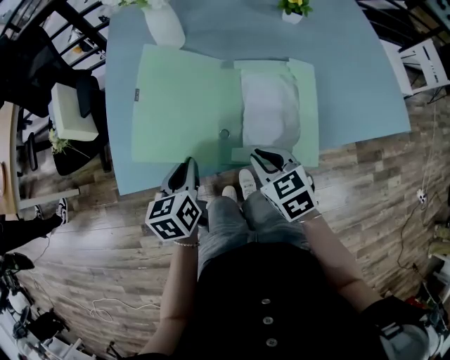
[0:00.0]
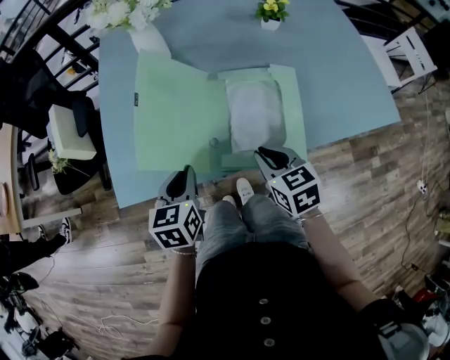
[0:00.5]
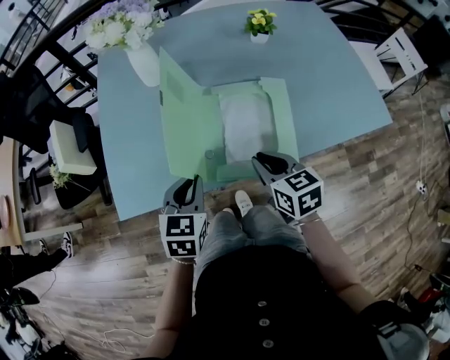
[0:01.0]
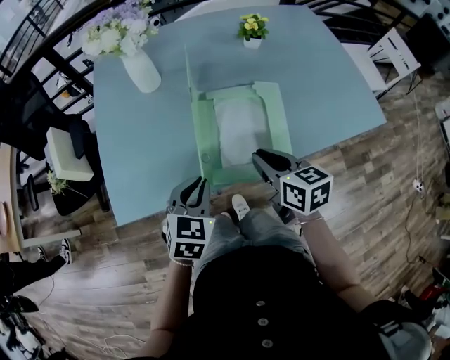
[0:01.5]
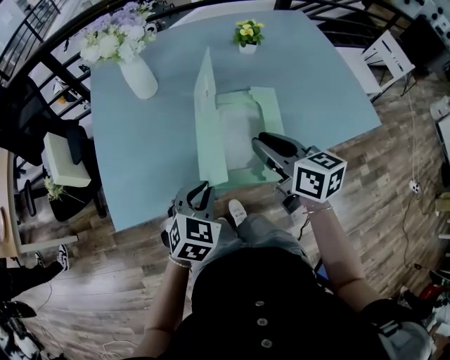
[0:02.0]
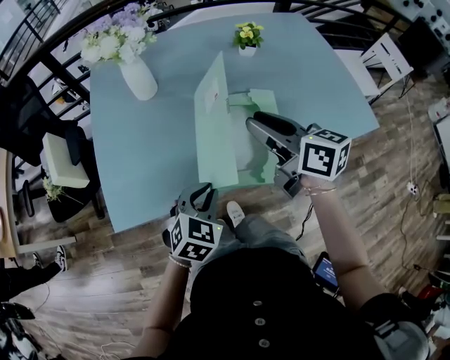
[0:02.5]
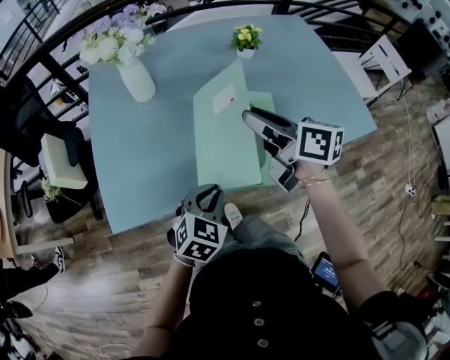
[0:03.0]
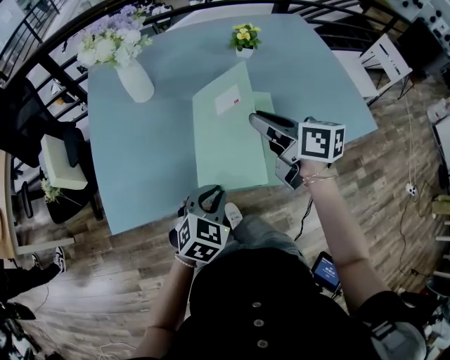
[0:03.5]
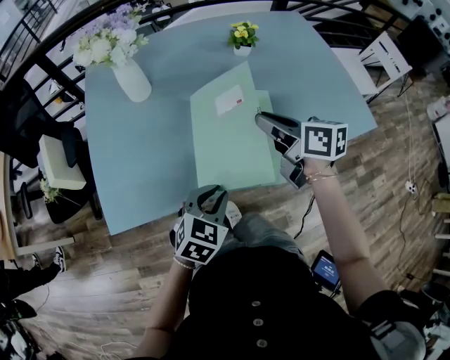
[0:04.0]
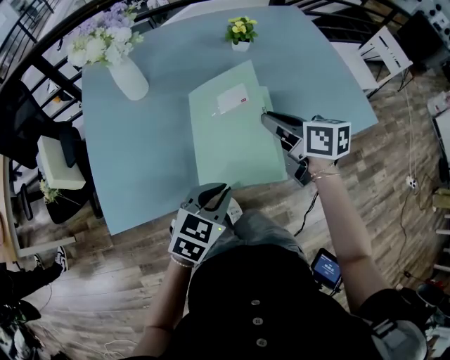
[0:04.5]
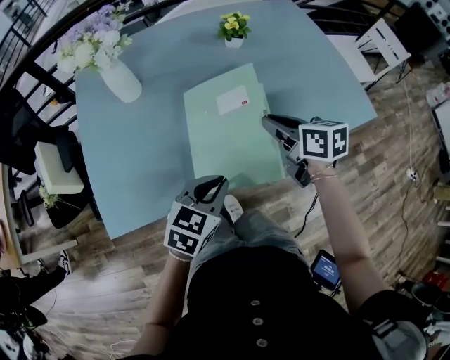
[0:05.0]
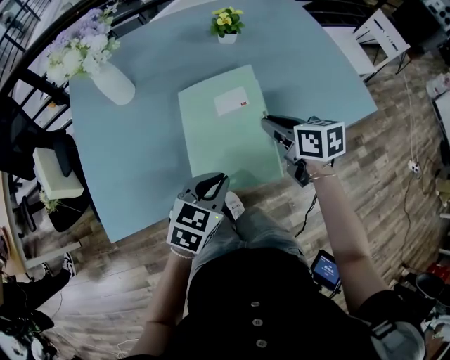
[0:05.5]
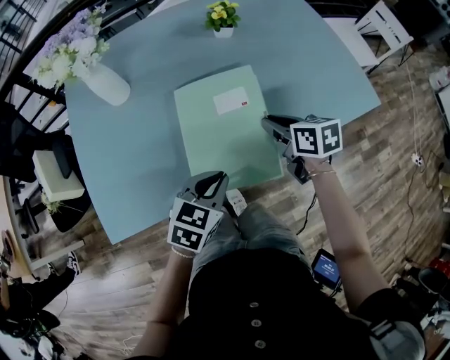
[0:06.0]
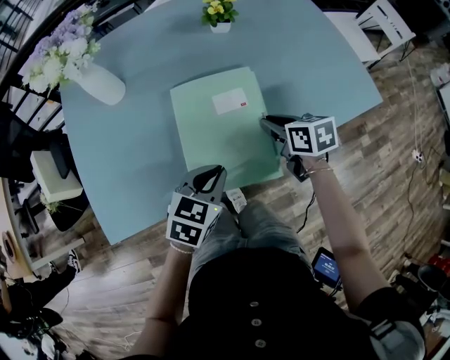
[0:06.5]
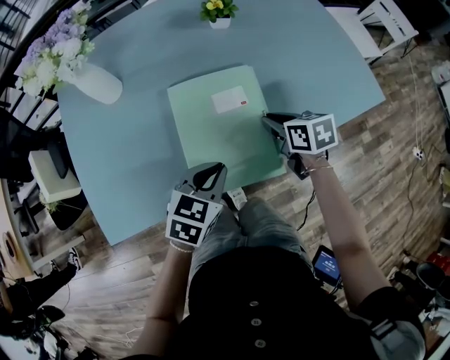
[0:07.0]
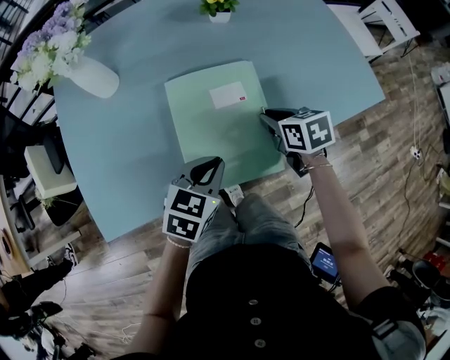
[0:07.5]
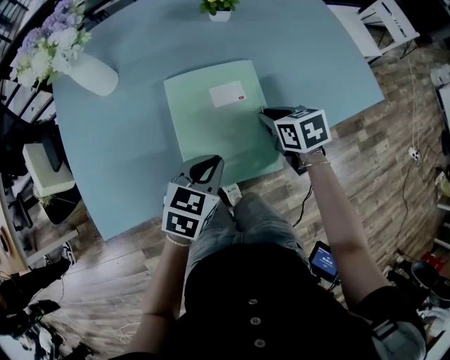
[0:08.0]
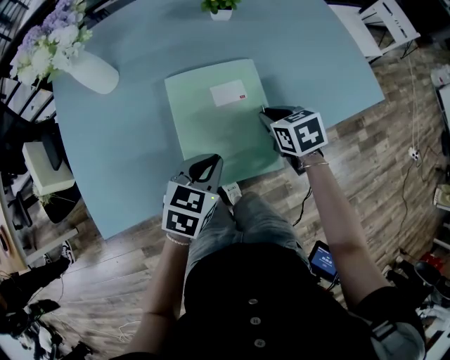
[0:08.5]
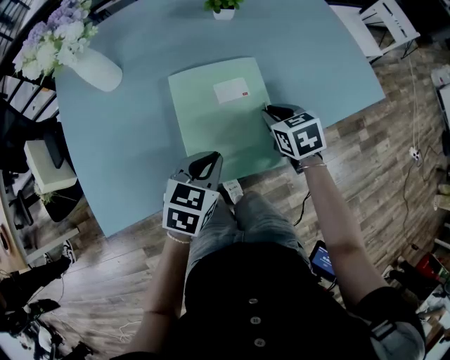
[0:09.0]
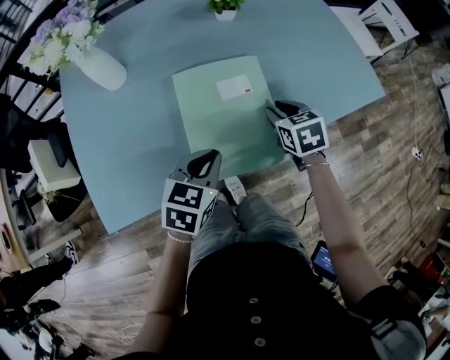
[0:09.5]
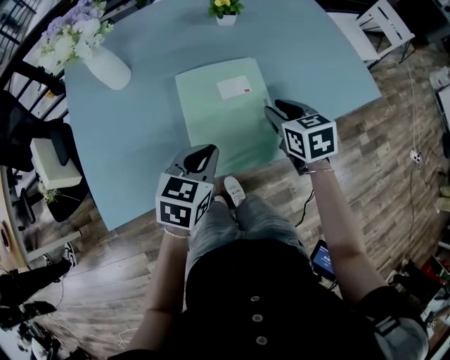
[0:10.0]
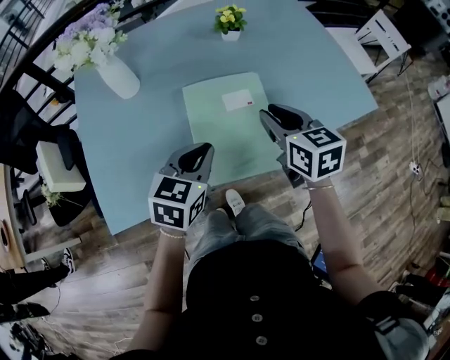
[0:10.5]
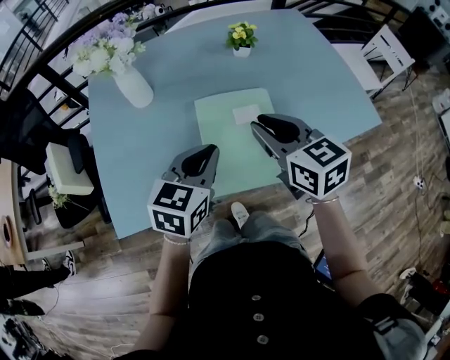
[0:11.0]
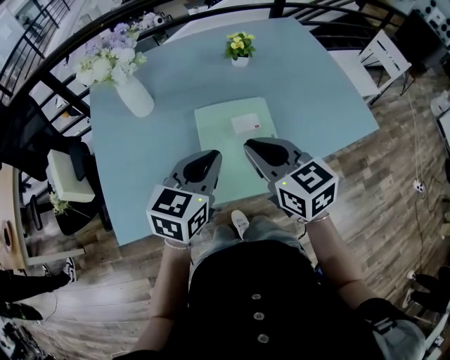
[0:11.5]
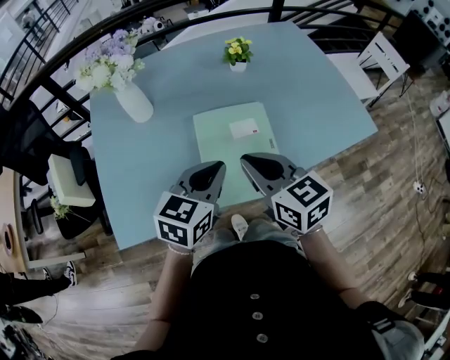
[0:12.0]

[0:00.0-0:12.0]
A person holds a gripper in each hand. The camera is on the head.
0:00.0 to 0:02.0: The right gripper moves upward and to the right, some 15 cm, and changes its angle by roughly 40 degrees, while the left gripper moves to the right, about 10 cm, and rotates around the line of its fingers by some 50 degrees, clockwise from behind.
0:02.0 to 0:04.0: The left gripper travels to the right by roughly 5 cm. Meanwhile the right gripper heads forward, covering roughly 5 cm.
0:04.0 to 0:06.0: The left gripper changes place by some 5 cm. Meanwhile the right gripper shifts approximately 15 cm downward and to the right.
0:06.0 to 0:08.0: The right gripper travels downward by approximately 5 cm.
0:08.0 to 0:10.0: The right gripper is displaced upward by roughly 5 cm.
0:10.0 to 0:12.0: The right gripper travels upward, to the left and backward by about 20 cm, swivels some 30 degrees, and closes, while the left gripper goes about 10 cm upward.

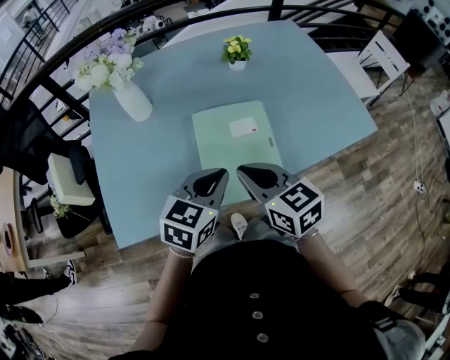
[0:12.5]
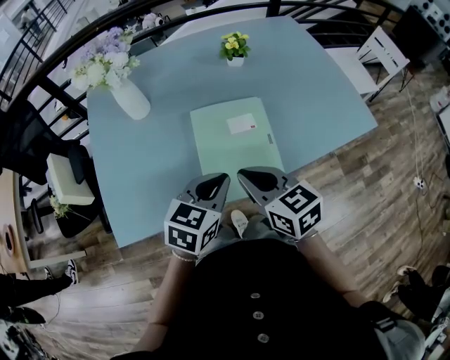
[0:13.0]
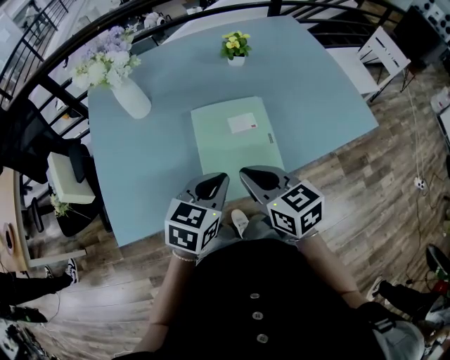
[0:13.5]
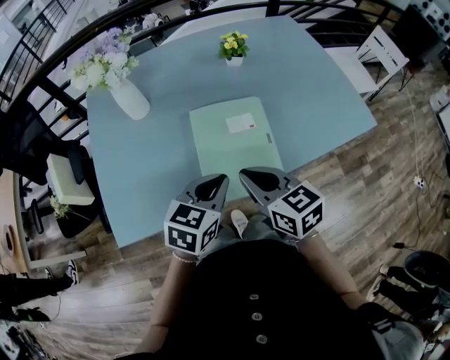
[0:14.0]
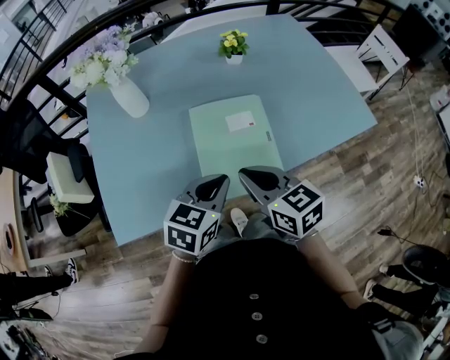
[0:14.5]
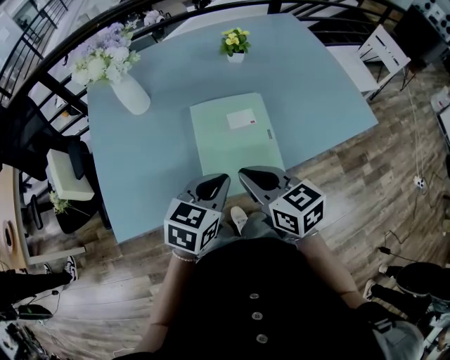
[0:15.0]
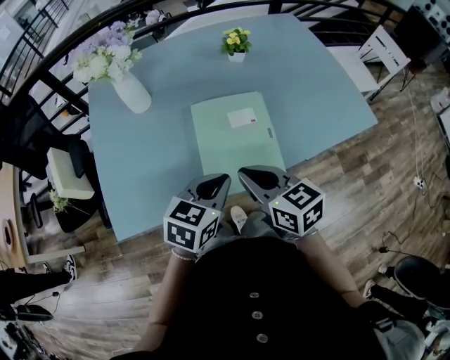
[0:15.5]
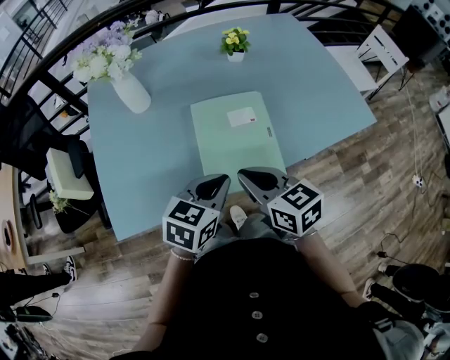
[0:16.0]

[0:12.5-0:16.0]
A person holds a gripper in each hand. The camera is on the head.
0:12.5 to 0:16.0: The grippers make only small movements.

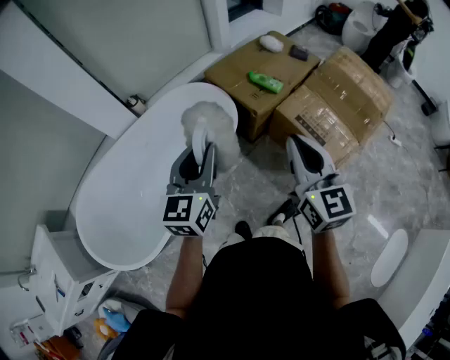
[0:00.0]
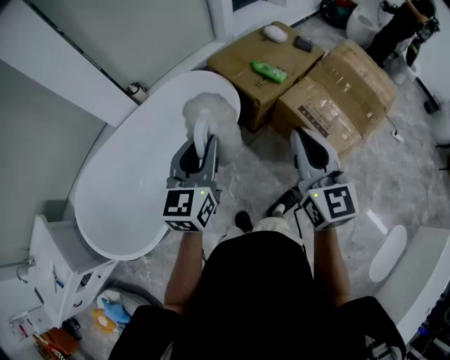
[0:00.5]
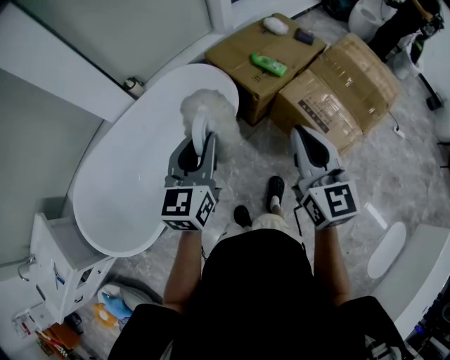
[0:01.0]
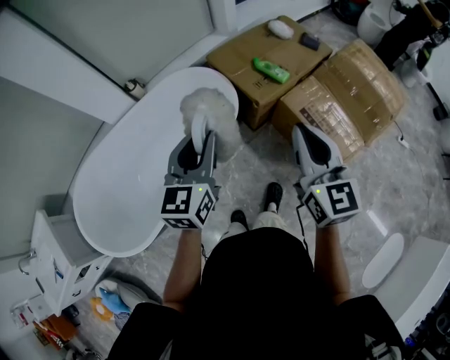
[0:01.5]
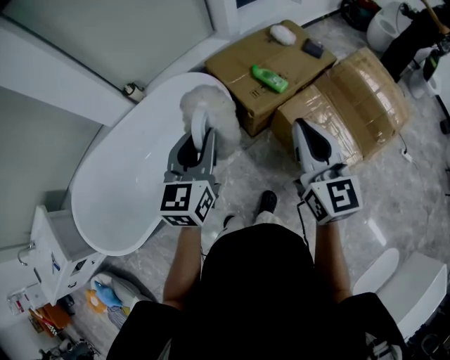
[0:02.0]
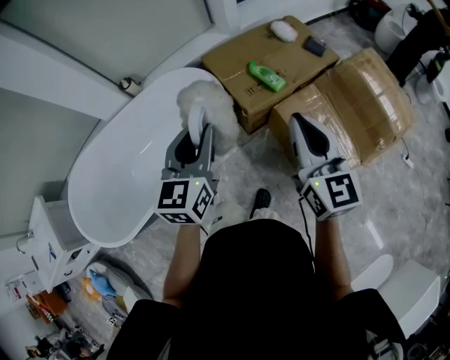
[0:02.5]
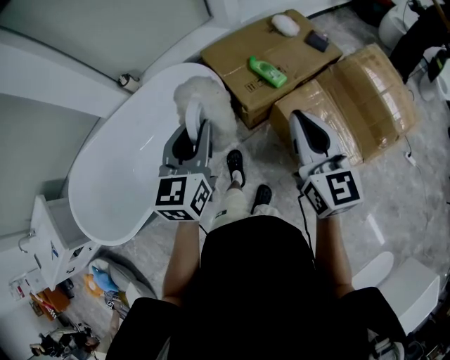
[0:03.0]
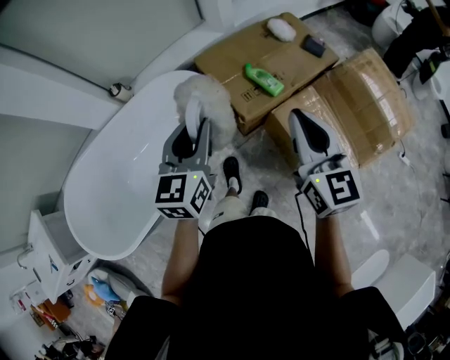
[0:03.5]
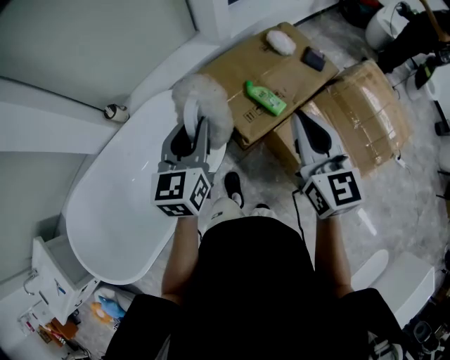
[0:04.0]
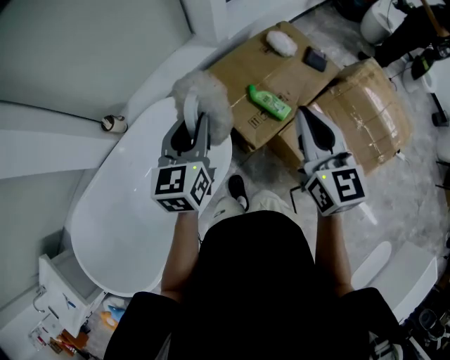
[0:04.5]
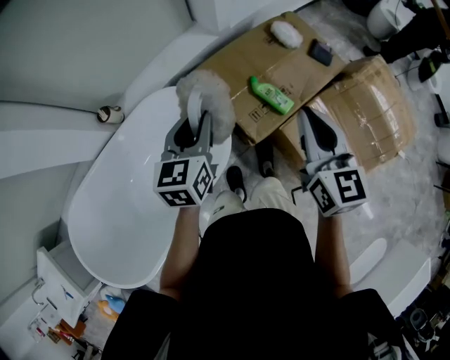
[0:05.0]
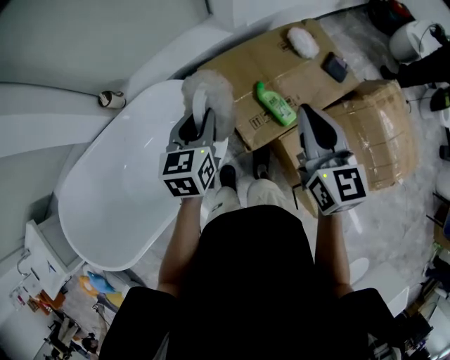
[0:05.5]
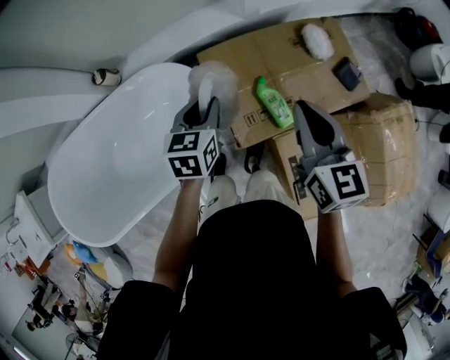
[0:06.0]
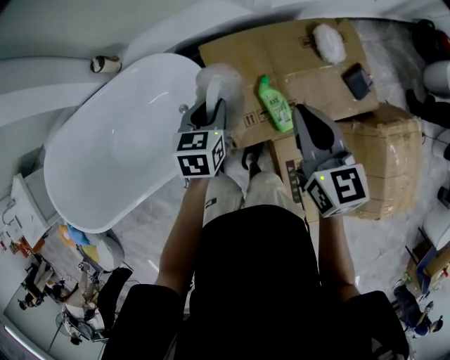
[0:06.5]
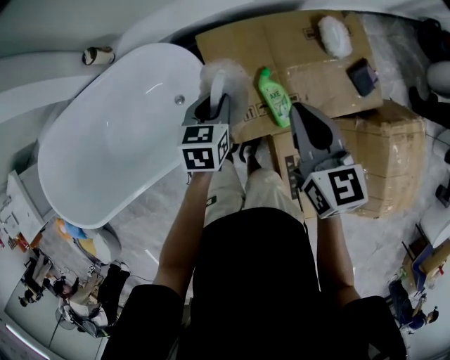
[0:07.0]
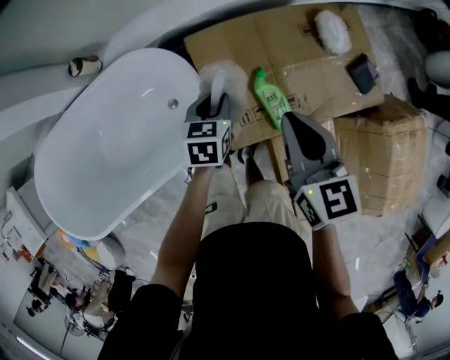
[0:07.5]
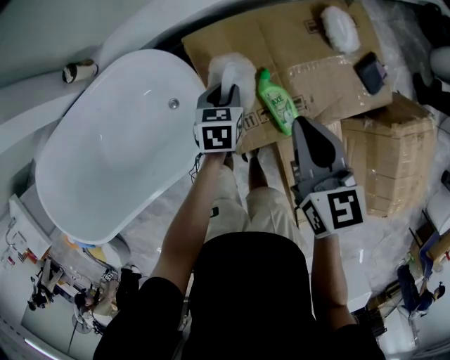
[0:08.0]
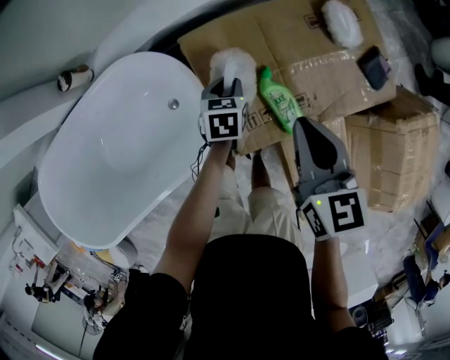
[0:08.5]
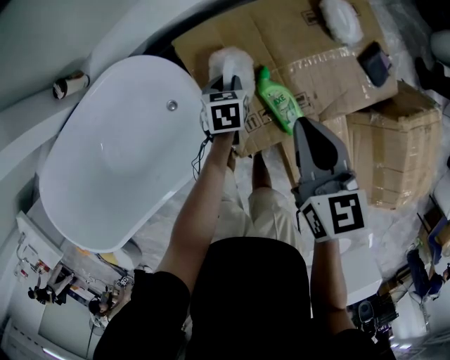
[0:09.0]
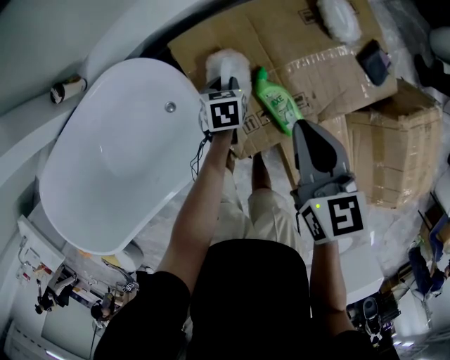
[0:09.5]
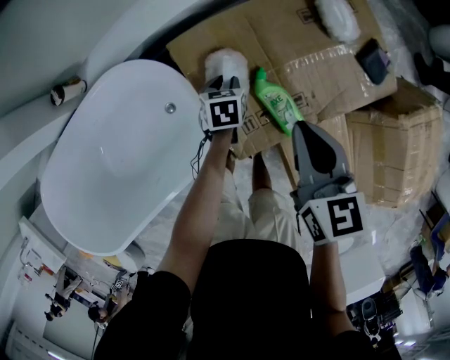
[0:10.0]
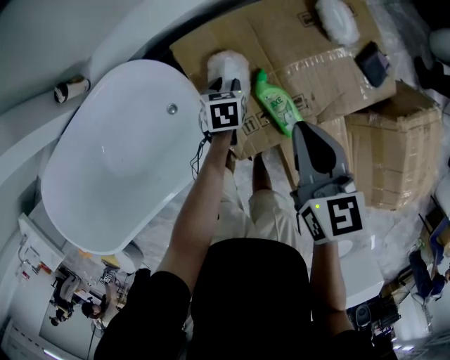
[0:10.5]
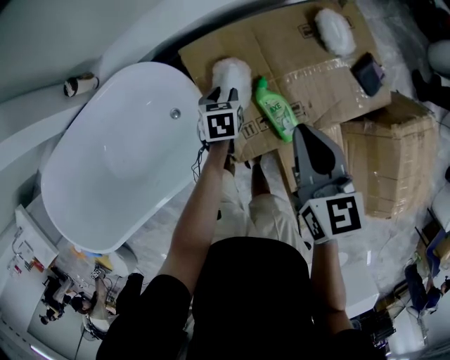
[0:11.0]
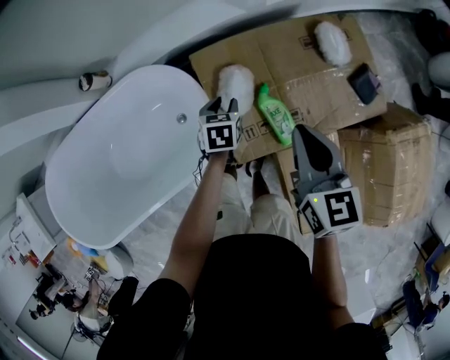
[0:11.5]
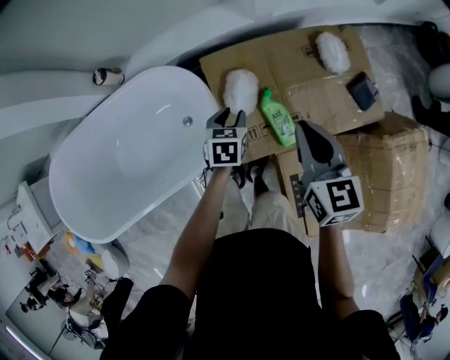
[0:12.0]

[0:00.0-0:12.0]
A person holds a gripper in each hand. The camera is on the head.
0:00.0 to 0:02.0: The grippers both shift forward and to the right by roughly 15 cm.
0:02.0 to 0:04.0: The grippers both shift forward by some 25 cm.
0:04.0 to 0:06.0: The grippers both shift forward and downward by about 25 cm. The left gripper turns by approximately 30 degrees, while the right gripper changes its angle by about 20 degrees.
0:06.0 to 0:08.0: The right gripper goes roughly 15 cm downward. Meanwhile the left gripper shifts roughly 20 cm downward.
0:08.0 to 0:10.0: The left gripper heads downward, covering approximately 10 cm.
0:10.0 to 0:12.0: The right gripper heads upward, covering approximately 10 cm. Meanwhile the left gripper moves upward and backward, about 15 cm.
